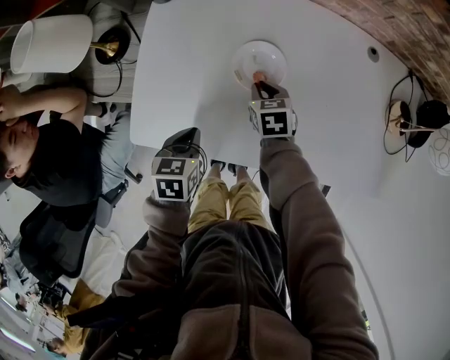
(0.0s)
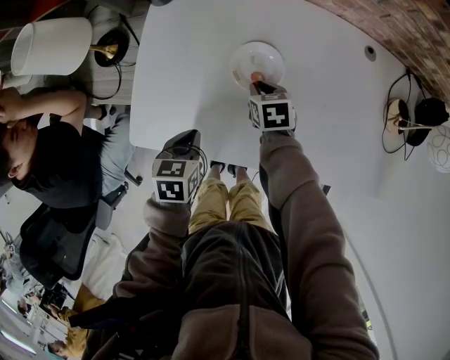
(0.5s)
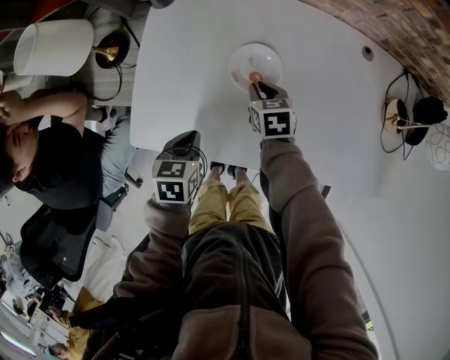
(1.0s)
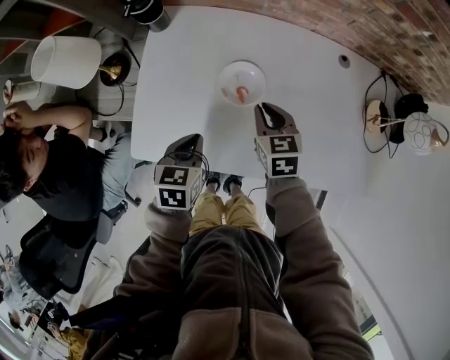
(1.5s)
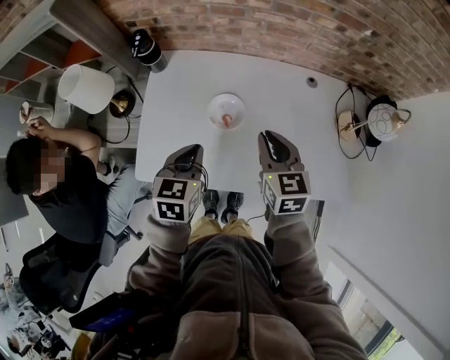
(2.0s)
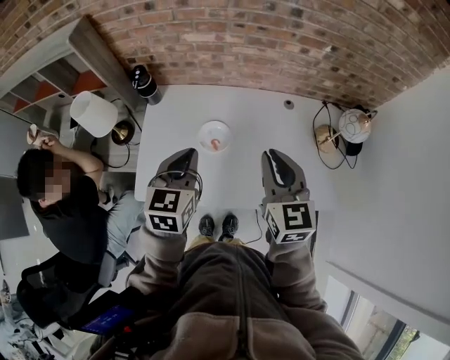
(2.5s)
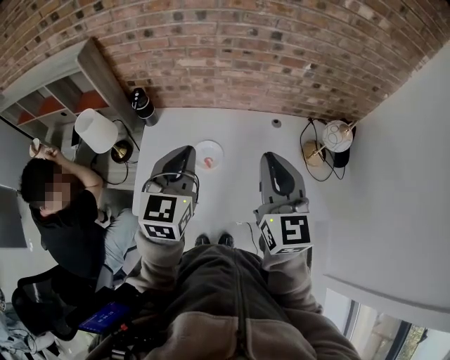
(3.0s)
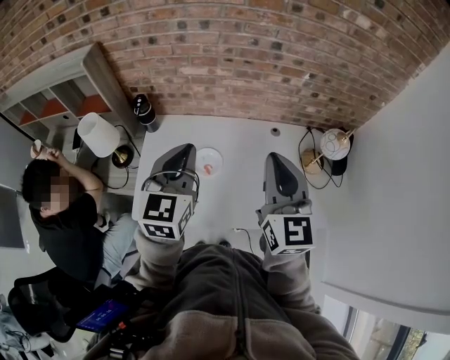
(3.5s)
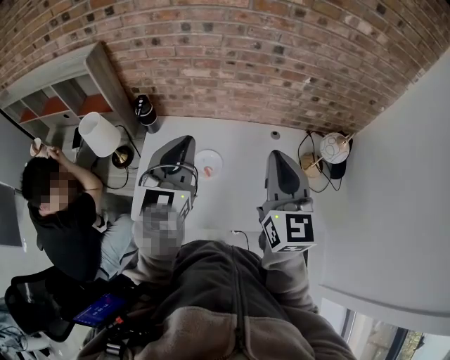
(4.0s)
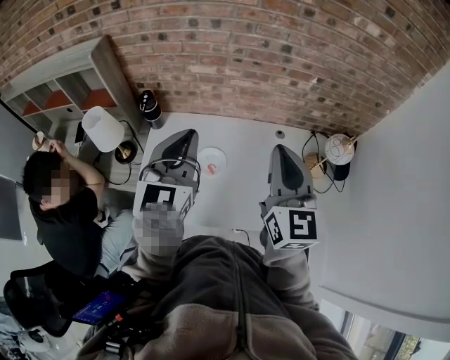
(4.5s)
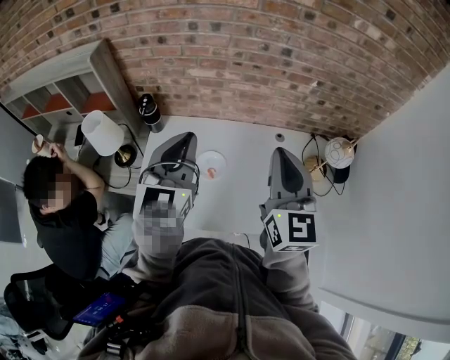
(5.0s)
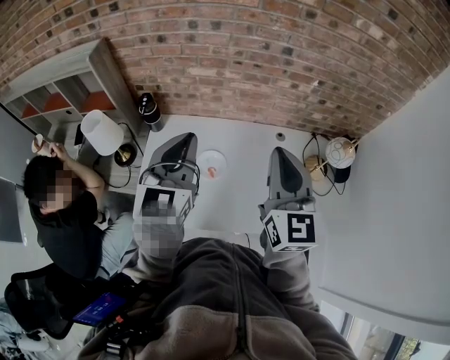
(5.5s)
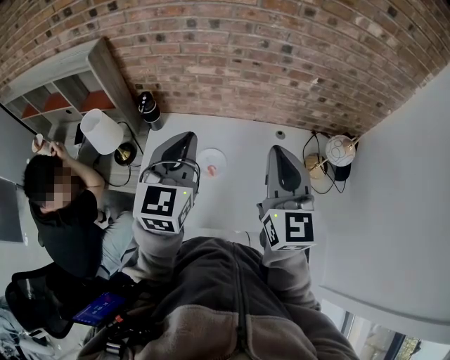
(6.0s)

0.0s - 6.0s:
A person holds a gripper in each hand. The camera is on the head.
0.0s - 2.0s: The right gripper moves upward, some 30 cm, and swivels approximately 30 degrees. Meanwhile the left gripper travels upward by some 20 cm, and rotates roughly 30 degrees.
2.0s - 4.0s: Both grippers move upward, approximately 25 cm. The right gripper angles its fingers upward, by some 30 degrees. Meanwhile the left gripper tips its fingers upward by approximately 30 degrees.
4.0s - 6.0s: The grippers make only small movements.

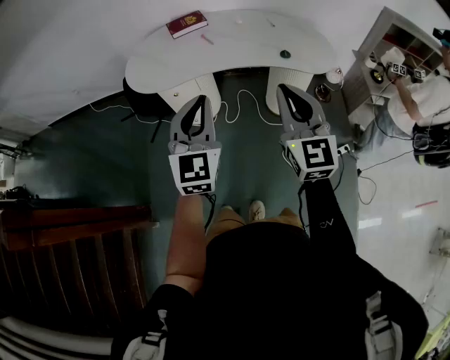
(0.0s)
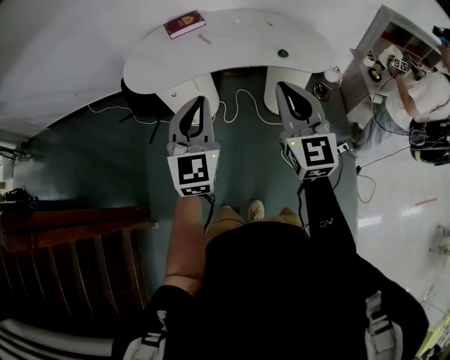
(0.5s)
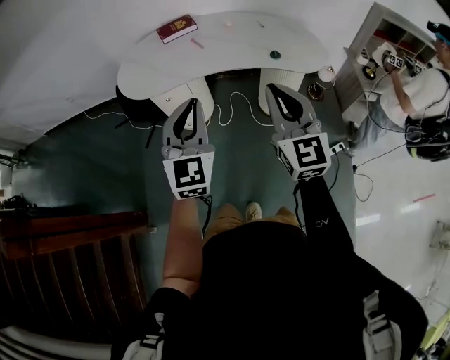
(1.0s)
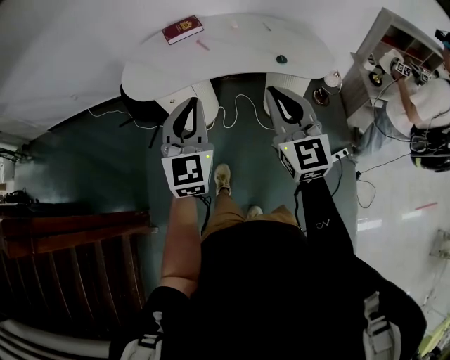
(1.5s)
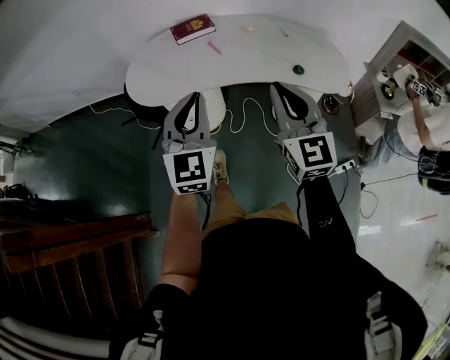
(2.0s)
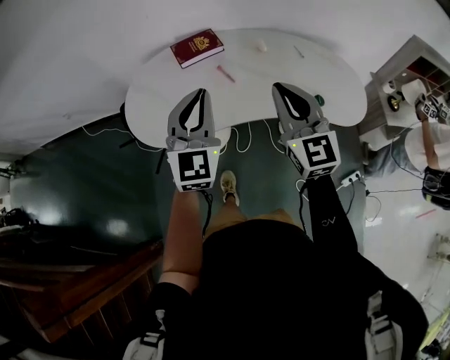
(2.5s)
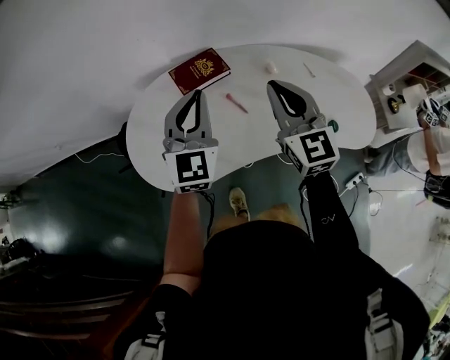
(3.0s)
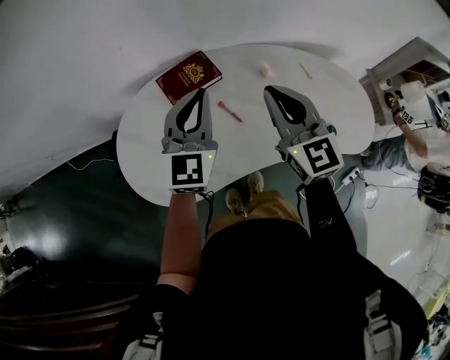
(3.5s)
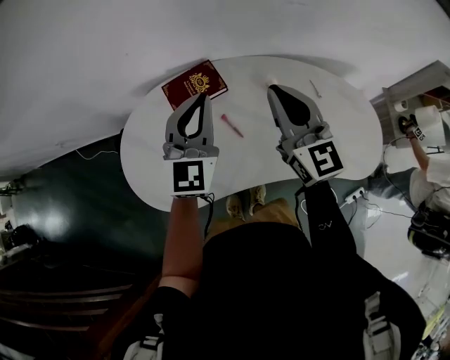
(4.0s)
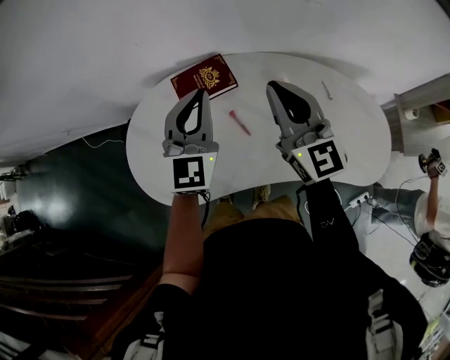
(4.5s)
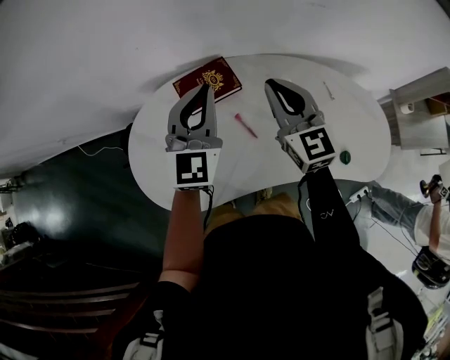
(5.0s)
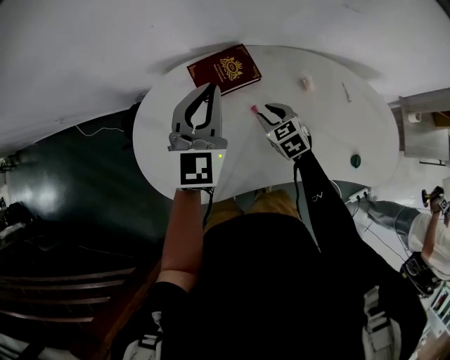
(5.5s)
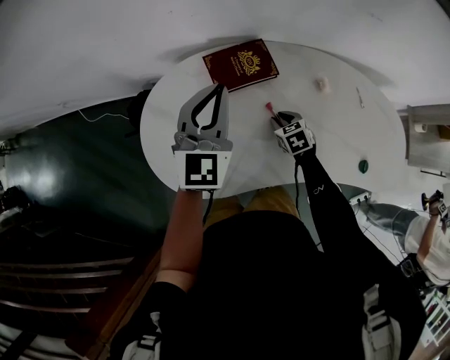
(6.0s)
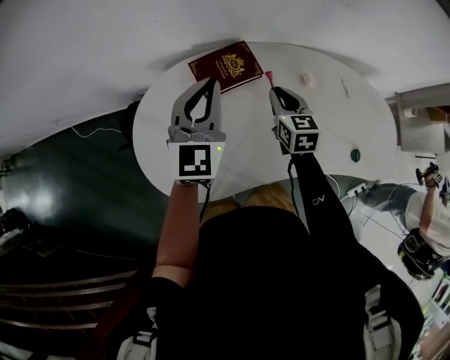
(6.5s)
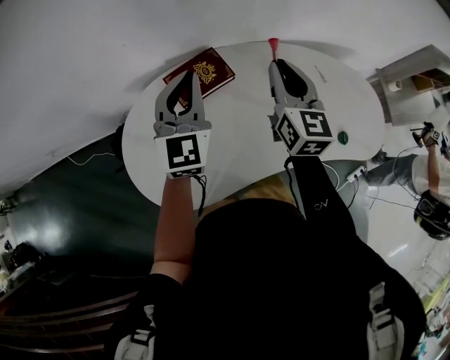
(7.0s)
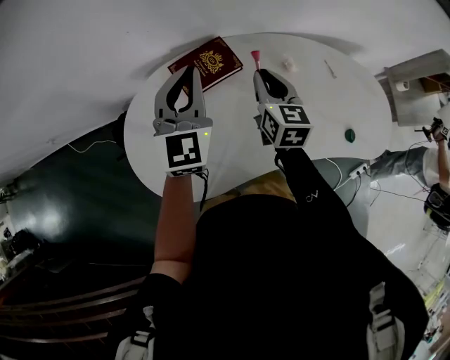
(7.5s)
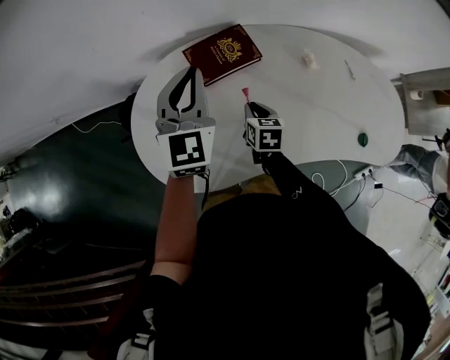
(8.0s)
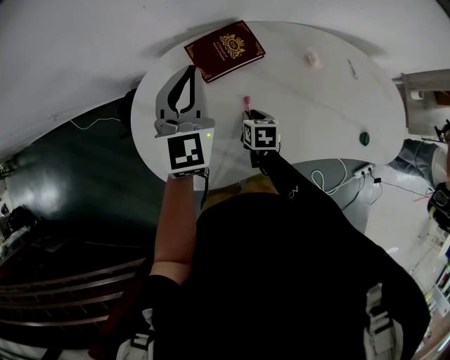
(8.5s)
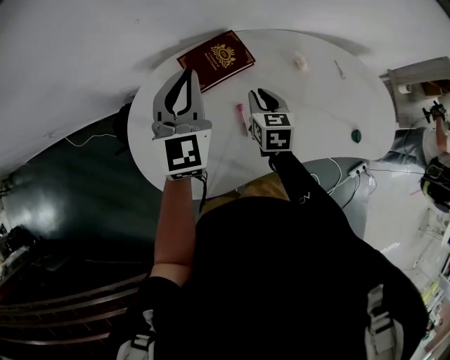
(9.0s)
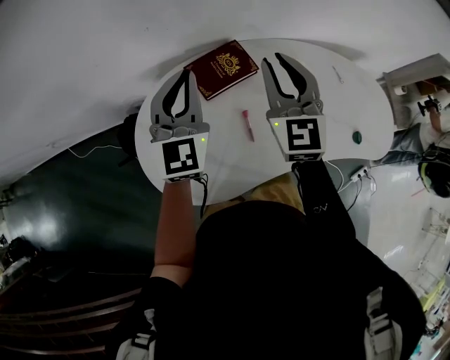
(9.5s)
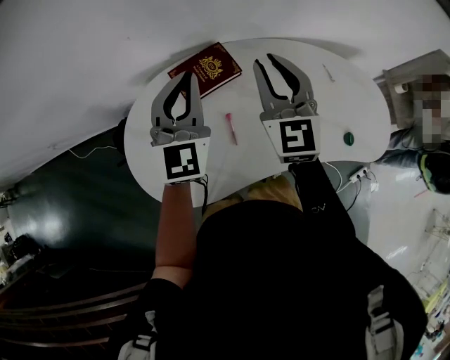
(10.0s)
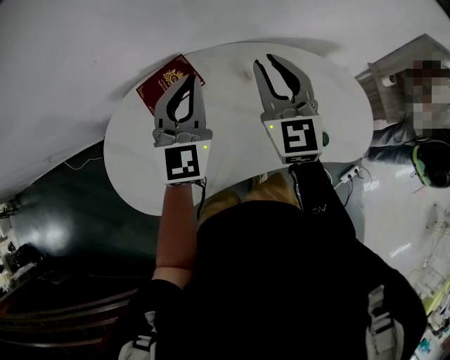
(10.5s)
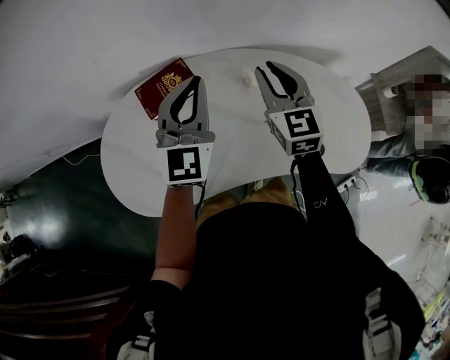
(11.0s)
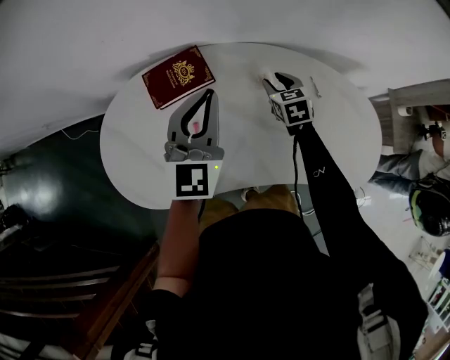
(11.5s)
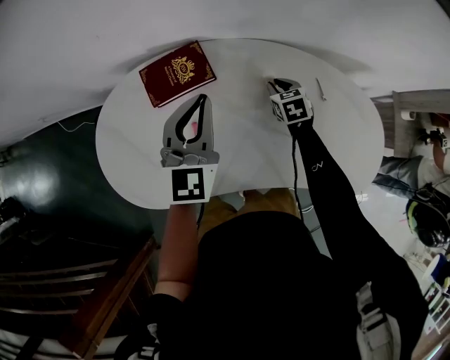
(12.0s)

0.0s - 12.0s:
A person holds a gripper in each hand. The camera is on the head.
0.0s - 2.0s: The grippers both shift forward by roughly 10 cm.
2.0s - 4.0s: The two grippers travel together, forward, about 50 cm.
4.0s - 6.0s: The right gripper travels downward by about 35 cm, points its fingers some 60 degrees further downward, and opens its fingers. The left gripper heads to the left, covering approximately 10 cm.
6.0s - 8.0s: The right gripper goes upward and returns, some 35 cm each way, and swivels about 40 degrees.
8.0s - 10.0s: The right gripper shifts some 30 cm upward, and tilts its fingers roughly 40 degrees upward; the left gripper is displaced upward by approximately 5 cm.
10.0s - 12.0s: The right gripper moves downward and to the right, about 40 cm, and angles its fingers downward, by about 50 degrees; the left gripper shifts approximately 15 cm to the right and downward.

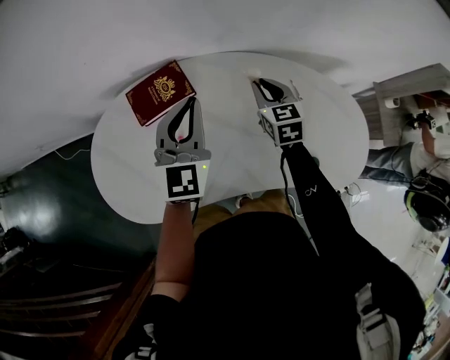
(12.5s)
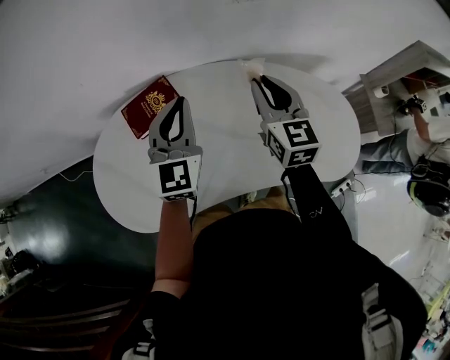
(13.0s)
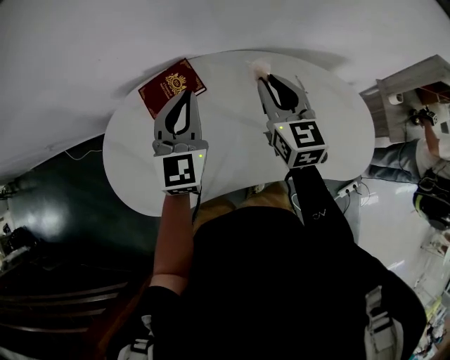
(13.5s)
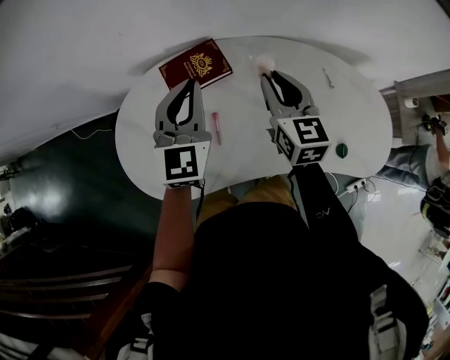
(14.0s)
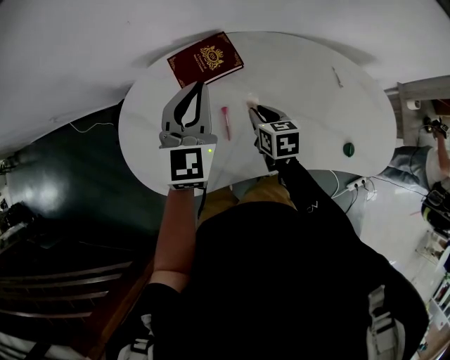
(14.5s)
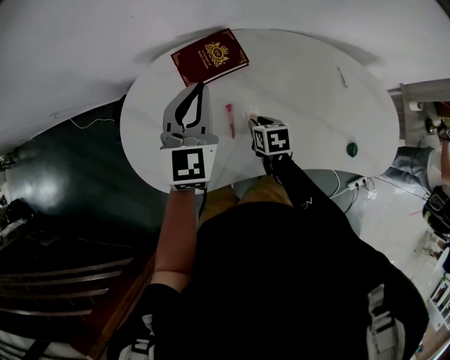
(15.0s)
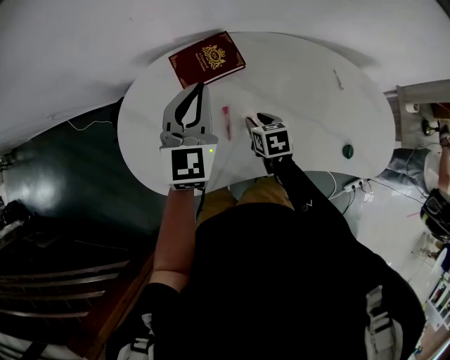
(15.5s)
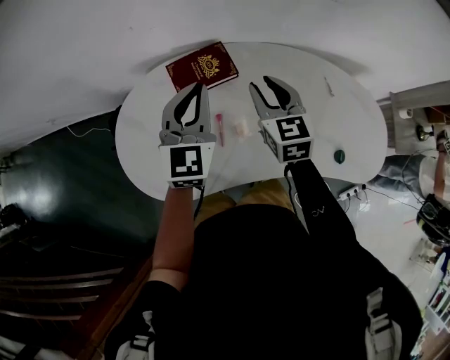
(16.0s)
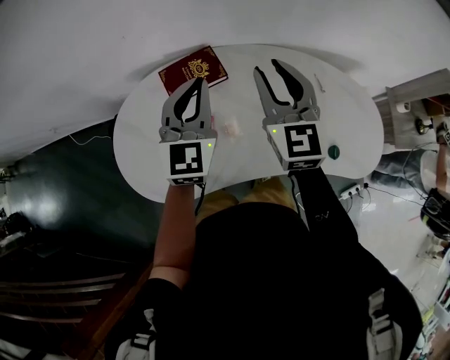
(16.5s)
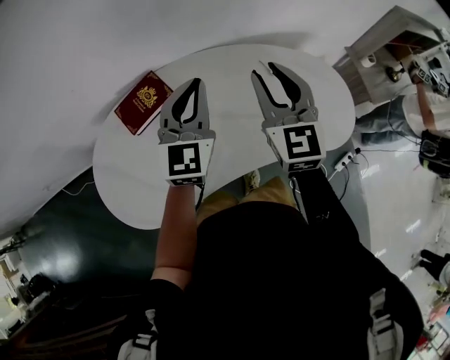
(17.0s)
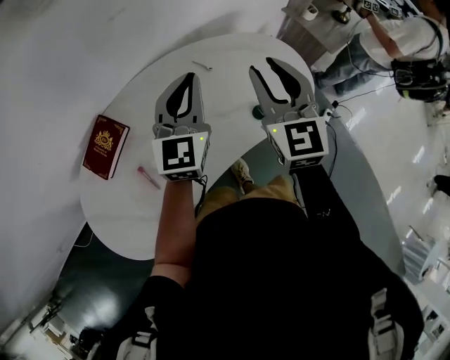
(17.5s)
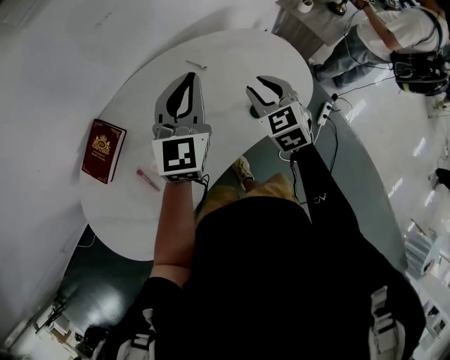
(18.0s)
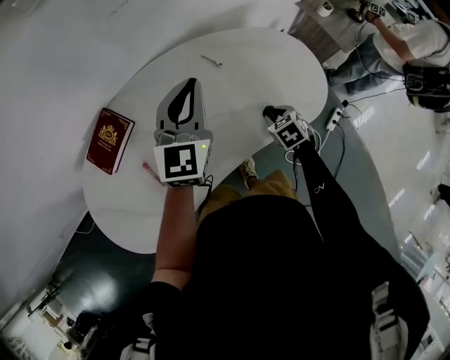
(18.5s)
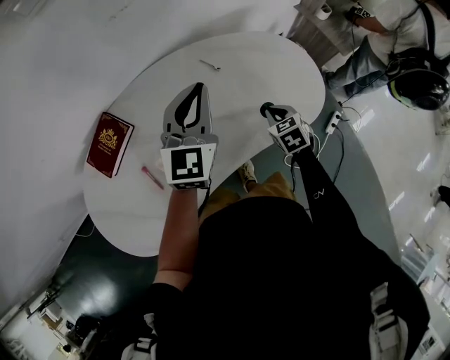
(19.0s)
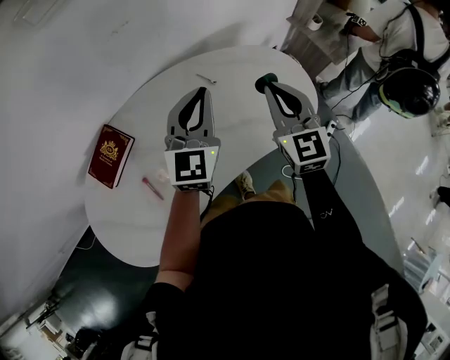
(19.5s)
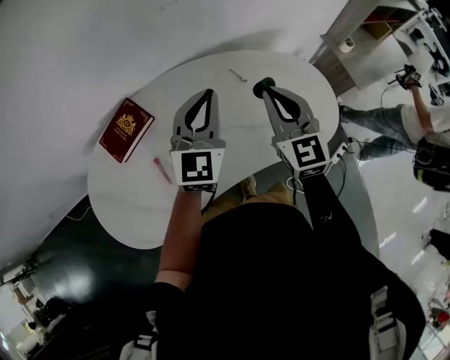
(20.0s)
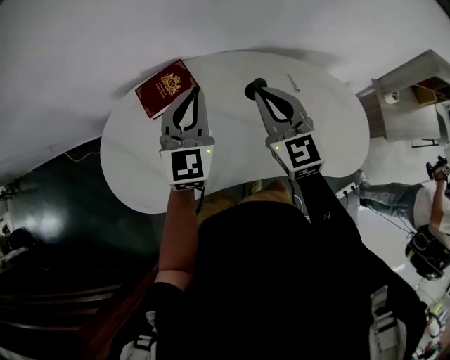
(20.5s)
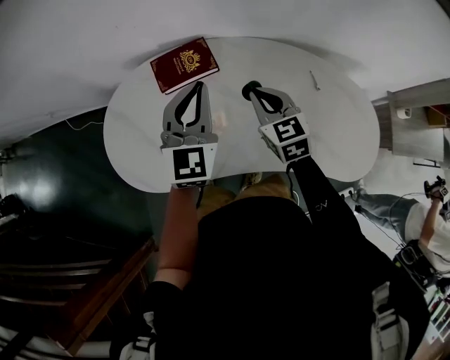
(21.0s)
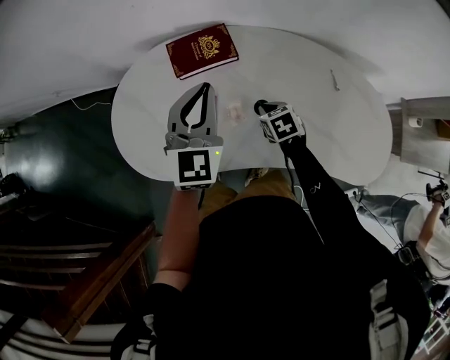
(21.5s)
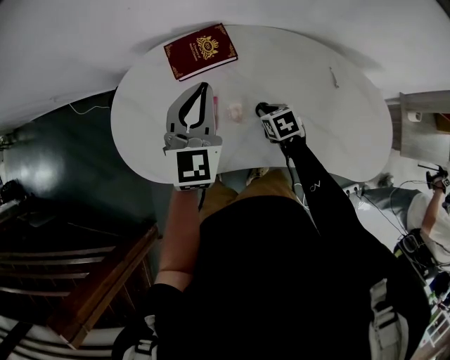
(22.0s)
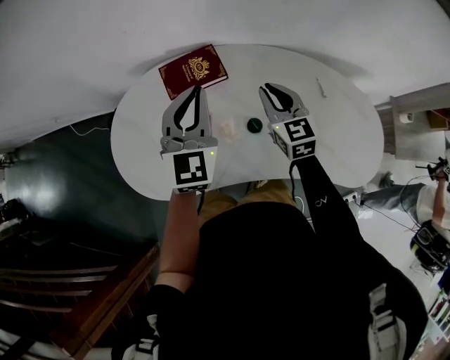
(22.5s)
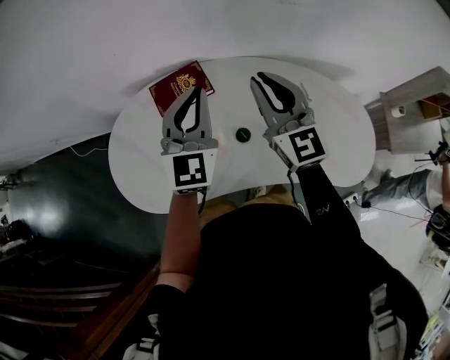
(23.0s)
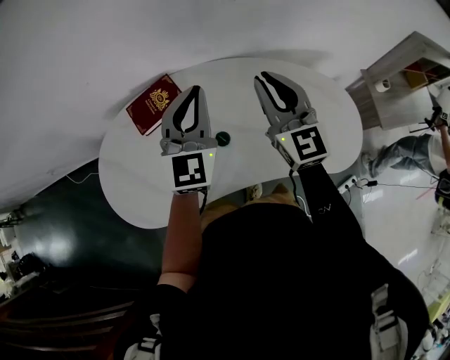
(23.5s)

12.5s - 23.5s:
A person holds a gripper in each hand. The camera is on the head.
12.5s - 14.5s: The right gripper shifts approximately 20 cm to the left and backward, travels upward and back again, some 15 cm each way, and rotates about 20 degrees. Meanwhile the left gripper heads to the left, covering some 15 cm.
14.5s - 16.0s: The right gripper is displaced upward by roughly 15 cm, and swivels about 30 degrees.
16.0s - 18.0s: The left gripper shifts by roughly 35 cm, and changes its angle by roughly 40 degrees. The right gripper shifts by some 35 cm, and turns by about 30 degrees.
18.0s - 20.0s: The left gripper is displaced to the left by roughly 5 cm; the right gripper travels upward and to the left by approximately 15 cm, rotates about 30 degrees, and closes its fingers.
20.0s - 21.5s: The right gripper goes some 25 cm downward, and tilts its fingers roughly 50 degrees downward; the left gripper changes place by some 25 cm, and turns by roughly 40 degrees.
21.5s - 23.5s: The left gripper moves to the right and upward, roughly 15 cm. The right gripper travels upward by some 30 cm, and points its fingers about 60 degrees further upward.
